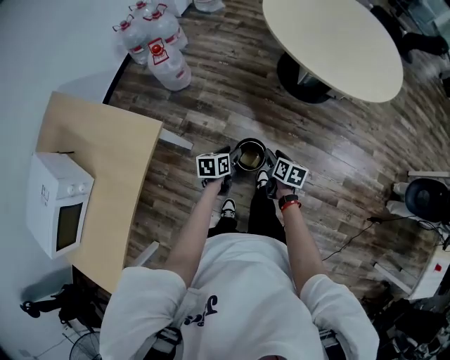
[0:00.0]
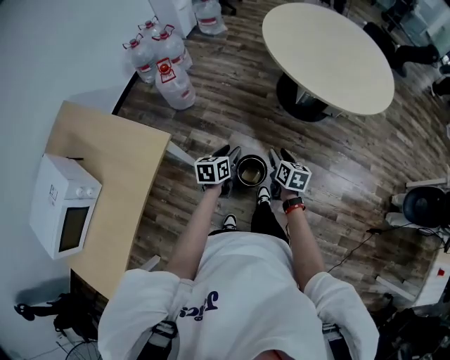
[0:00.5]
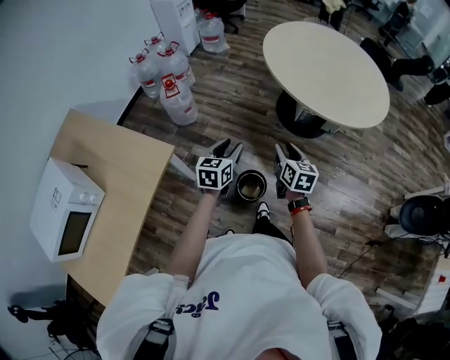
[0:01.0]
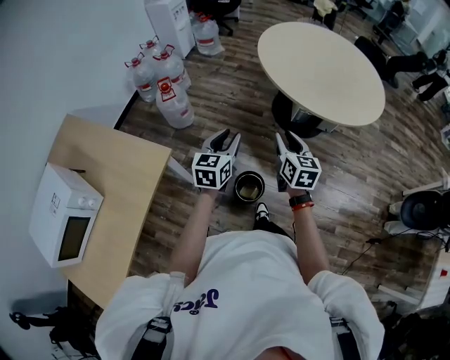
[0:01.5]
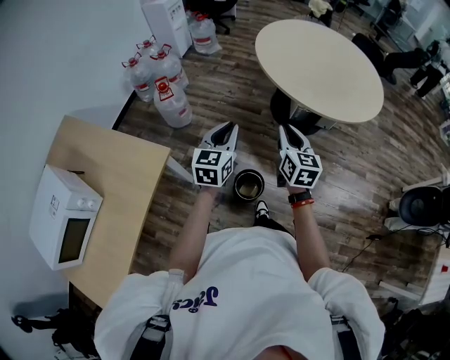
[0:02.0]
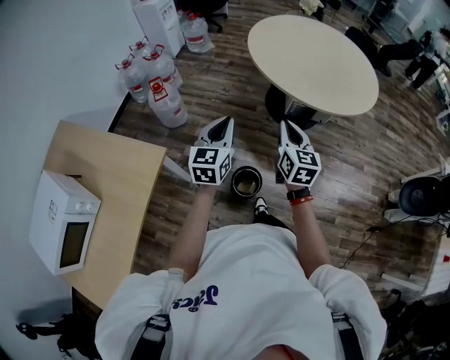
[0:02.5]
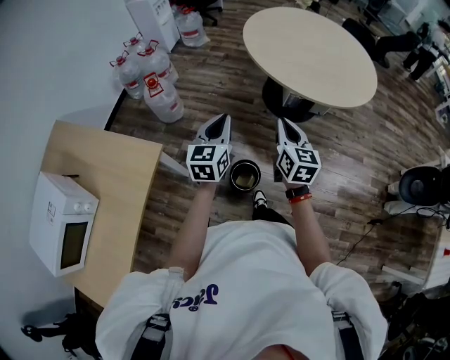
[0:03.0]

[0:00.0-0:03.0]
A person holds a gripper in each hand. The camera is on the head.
0:00.0 to 0:01.5: Both grippers travel together upward, roughly 30 cm. The left gripper swivels some 40 degrees, while the right gripper swivels approximately 40 degrees.
0:01.5 to 0:03.0: The right gripper closes up. The left gripper closes up.

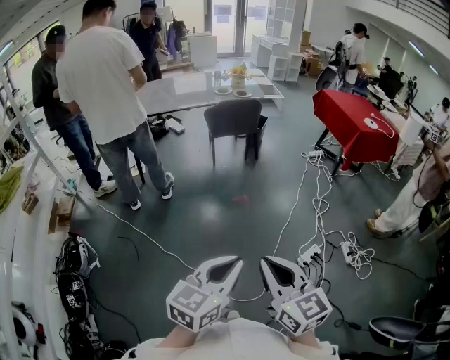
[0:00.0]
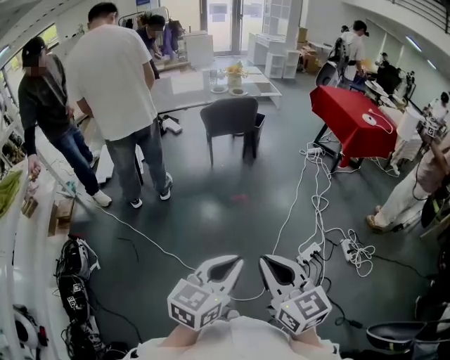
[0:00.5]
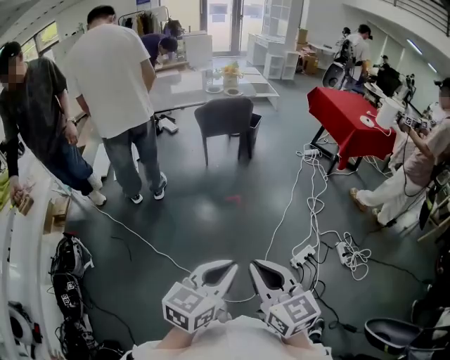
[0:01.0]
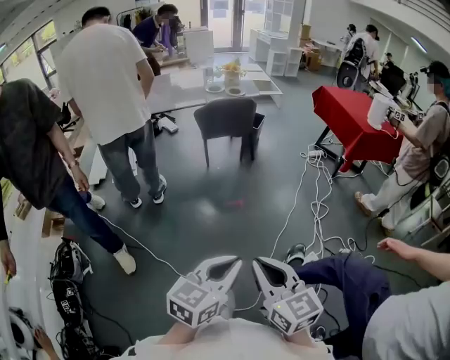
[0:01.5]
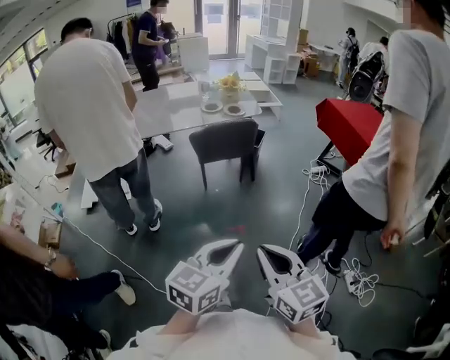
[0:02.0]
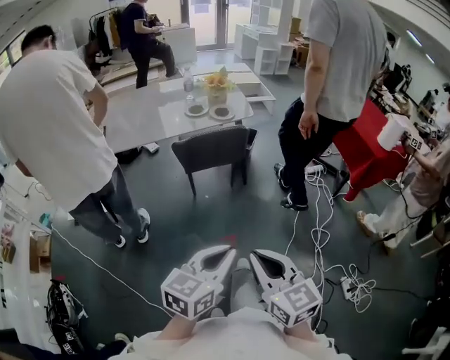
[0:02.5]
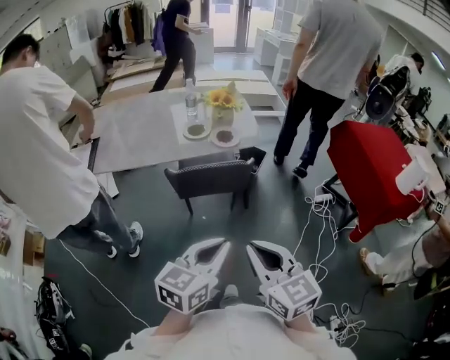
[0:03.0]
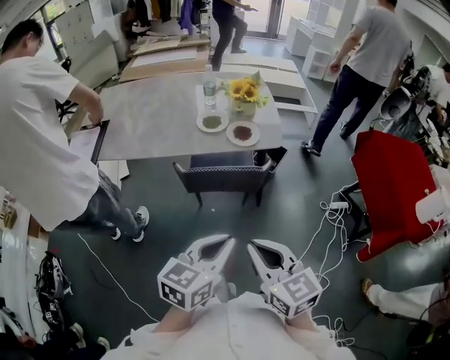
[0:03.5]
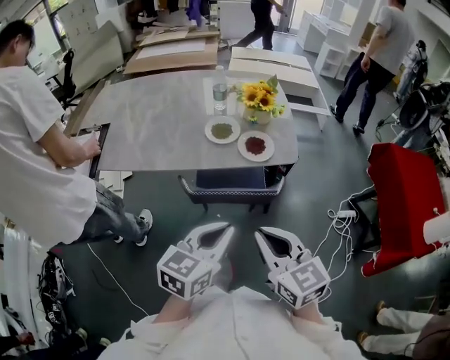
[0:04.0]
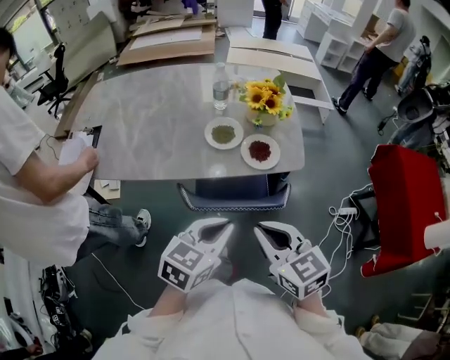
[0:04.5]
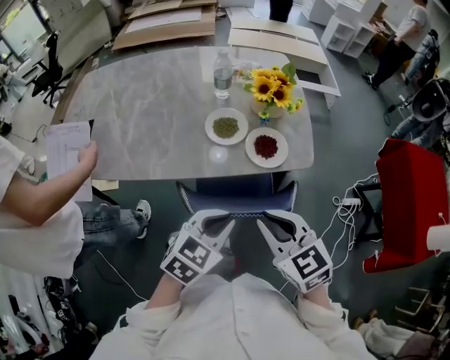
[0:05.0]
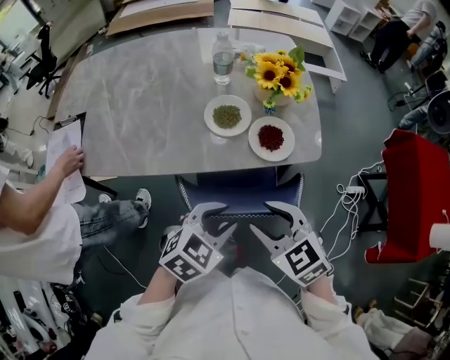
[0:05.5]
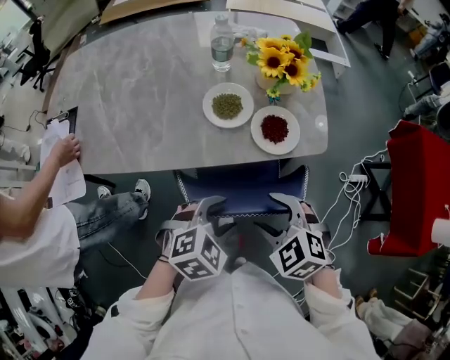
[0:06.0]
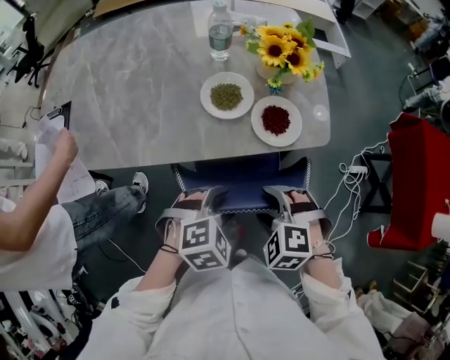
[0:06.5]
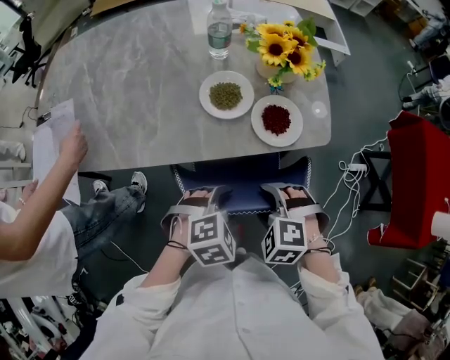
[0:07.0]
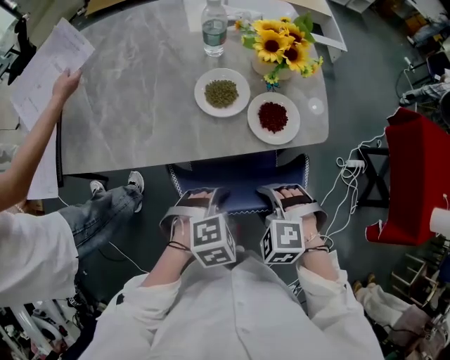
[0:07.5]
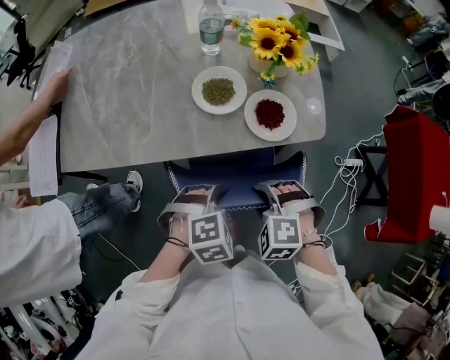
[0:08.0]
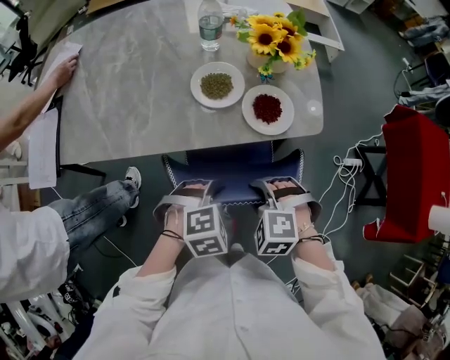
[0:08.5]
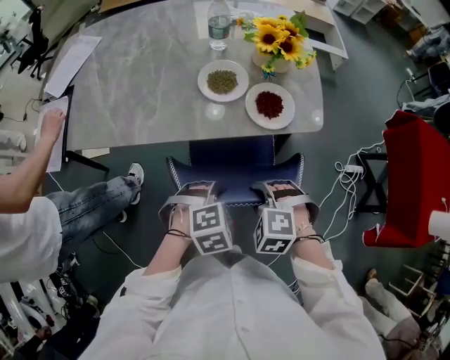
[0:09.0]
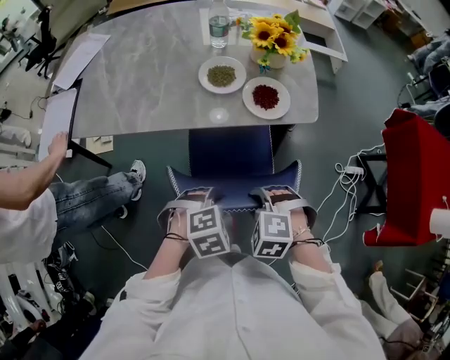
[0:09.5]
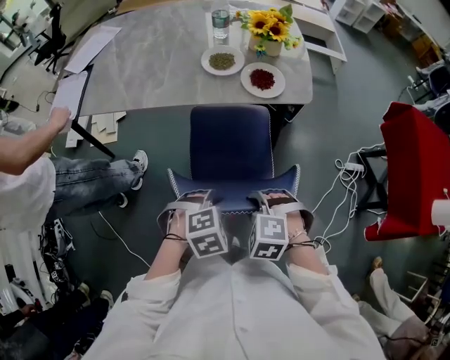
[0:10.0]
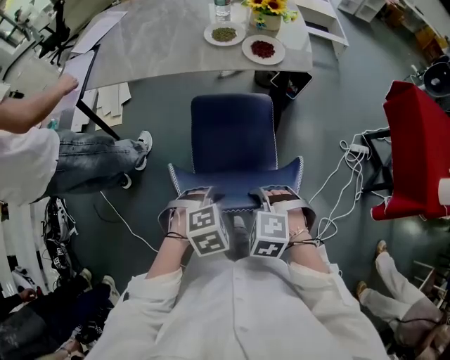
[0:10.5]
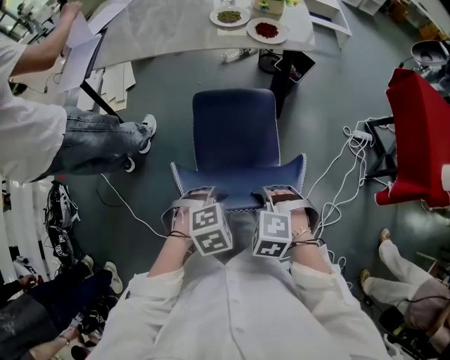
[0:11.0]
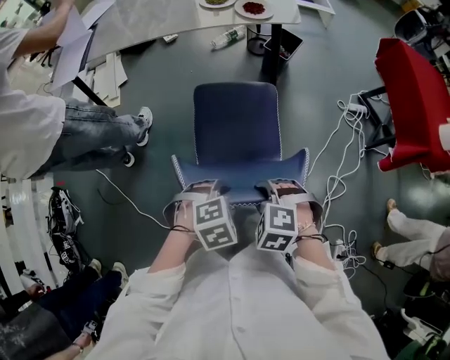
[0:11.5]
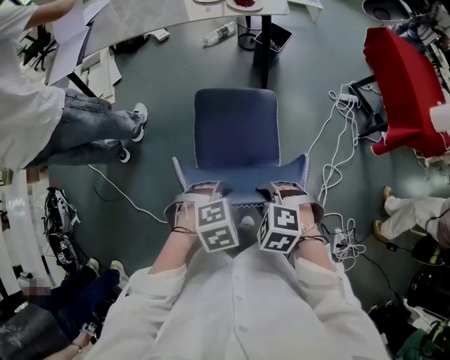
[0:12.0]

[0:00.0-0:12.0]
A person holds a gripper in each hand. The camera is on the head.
0:00.0 to 0:02.0: Both grippers travel together forward, approximately 35 cm.
0:02.0 to 0:04.0: The two grippers travel together, forward, roughly 60 cm.
0:04.0 to 0:06.0: Both grippers move downward and forward, about 20 cm. The left gripper tips its fingers downward by approximately 40 degrees, and opens, while the right gripper points its fingers some 30 degrees further downward, and opens.
0:06.0 to 0:08.0: Both grippers move downward, some 5 cm. The left gripper closes up. Meanwhile the right gripper swivels approximately 30 degrees, and closes.
0:08.0 to 0:10.0: The grippers both shift backward by some 20 cm.
0:10.0 to 0:12.0: The grippers both shift backward by about 35 cm.

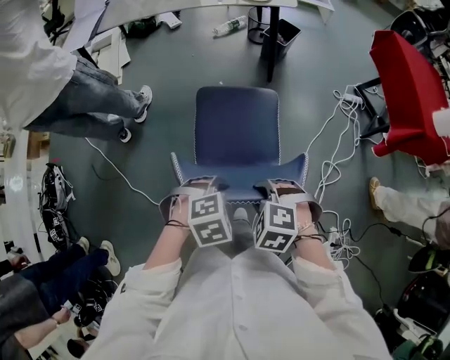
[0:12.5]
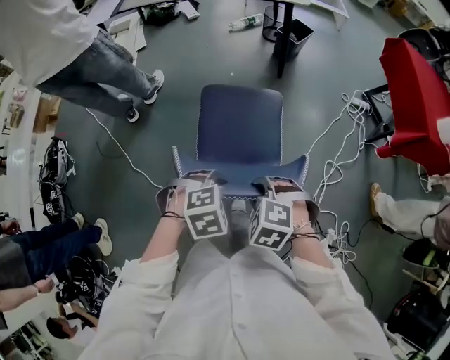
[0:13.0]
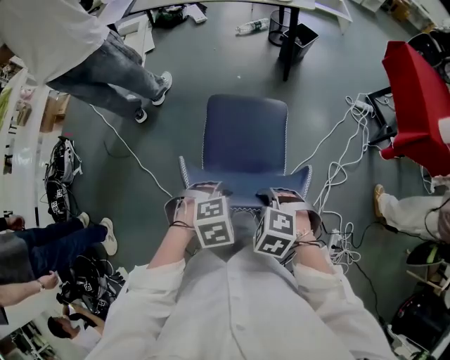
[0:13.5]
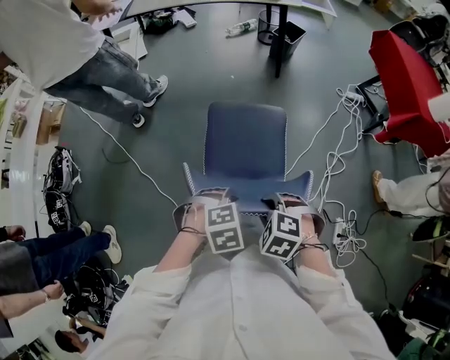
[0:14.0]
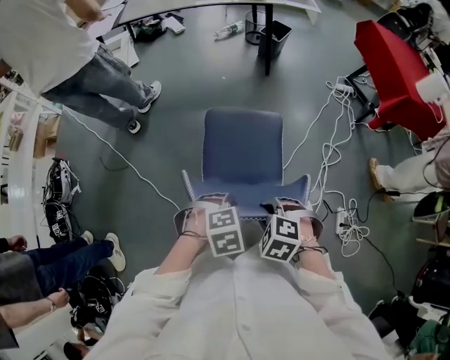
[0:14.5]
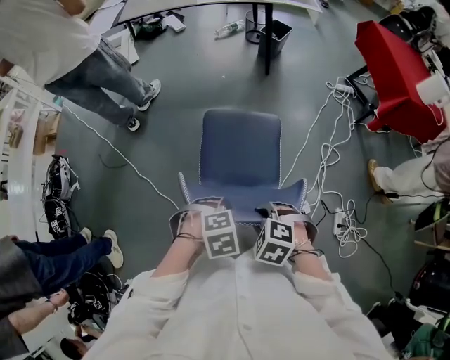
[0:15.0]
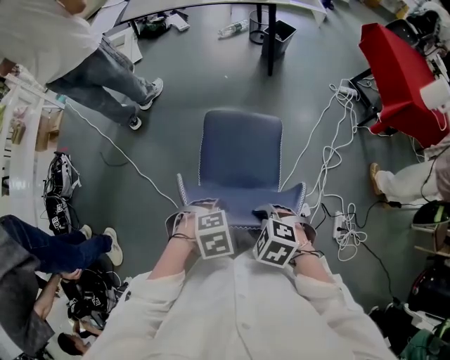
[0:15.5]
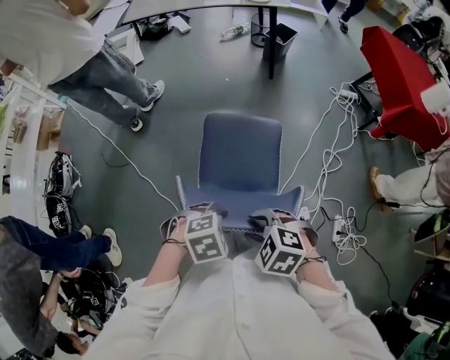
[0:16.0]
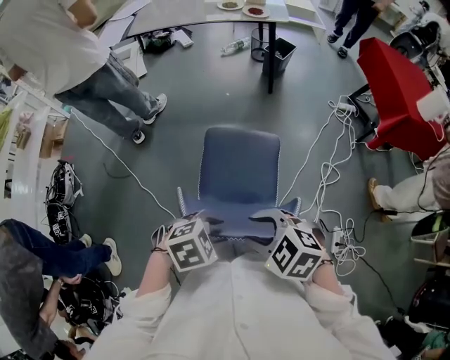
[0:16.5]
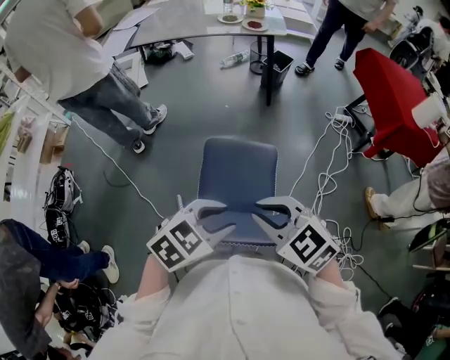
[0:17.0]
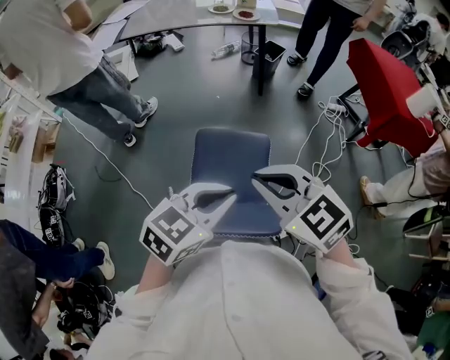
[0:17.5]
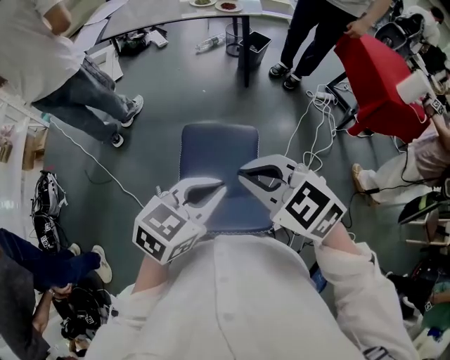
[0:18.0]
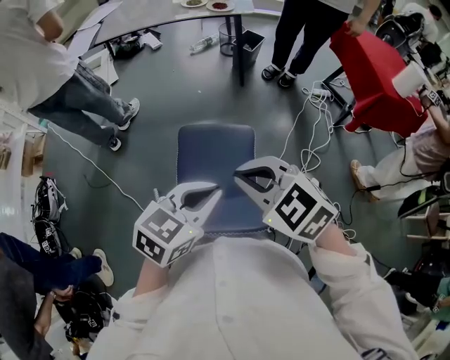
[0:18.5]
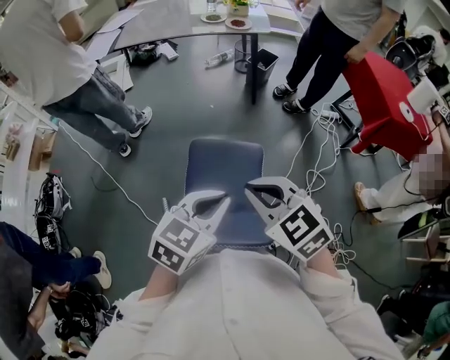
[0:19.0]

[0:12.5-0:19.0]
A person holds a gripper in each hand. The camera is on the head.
0:12.5 to 0:14.5: The right gripper changes place by roughly 25 cm. Meanwhile the left gripper moves some 25 cm.
0:14.5 to 0:17.0: Both grippers travel together upward, about 15 cm. The left gripper tips its fingers upward by some 30 degrees. The right gripper tips its fingers upward by some 40 degrees.
0:17.0 to 0:19.0: Both grippers travel together forward, roughly 5 cm. The left gripper swivels some 20 degrees, and closes its fingers.

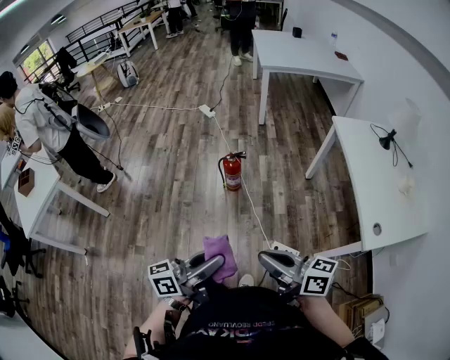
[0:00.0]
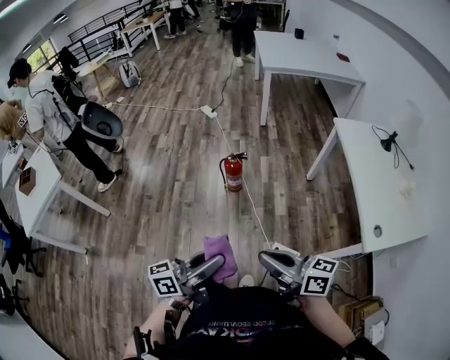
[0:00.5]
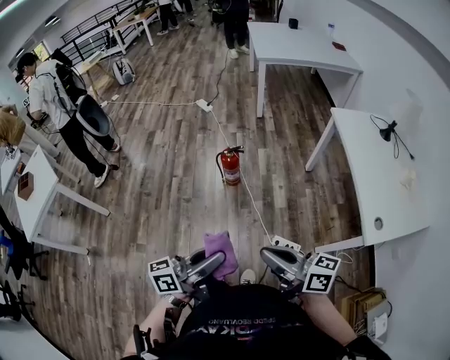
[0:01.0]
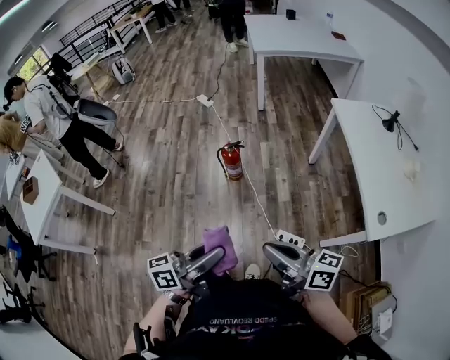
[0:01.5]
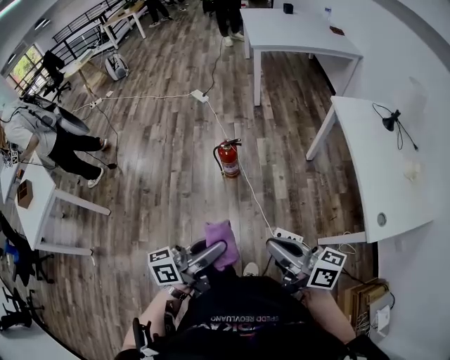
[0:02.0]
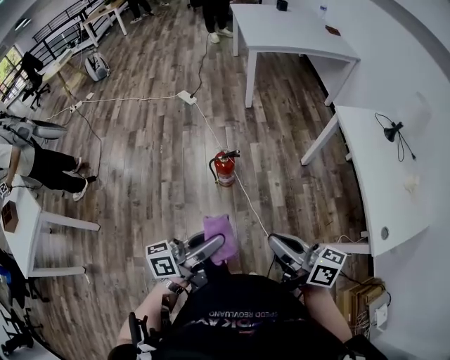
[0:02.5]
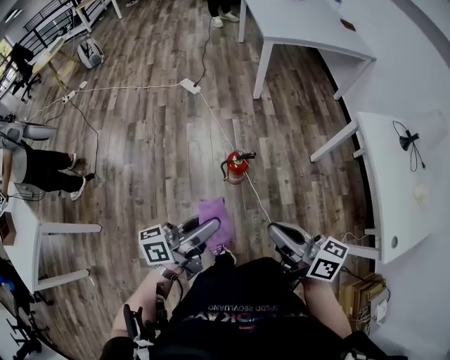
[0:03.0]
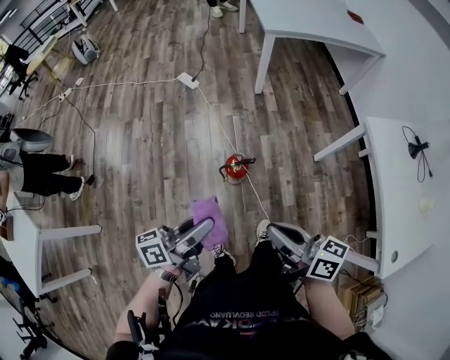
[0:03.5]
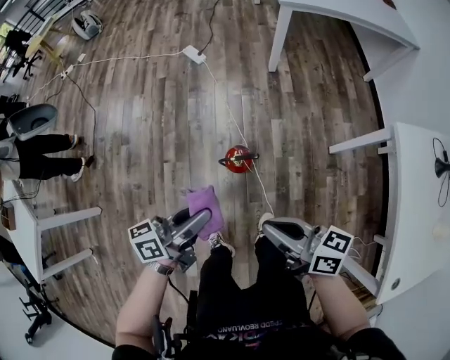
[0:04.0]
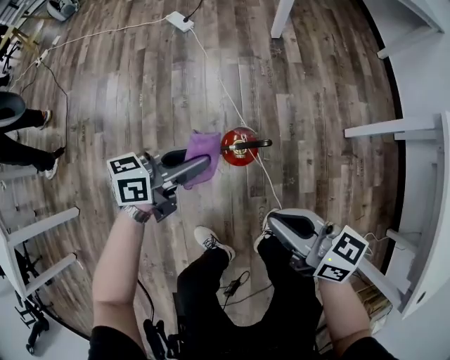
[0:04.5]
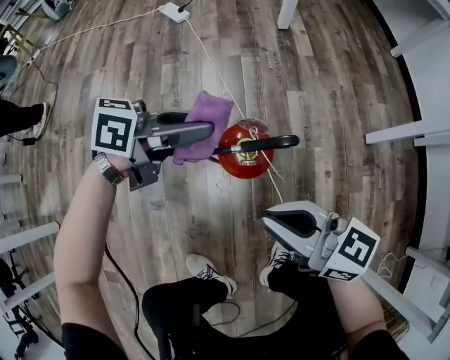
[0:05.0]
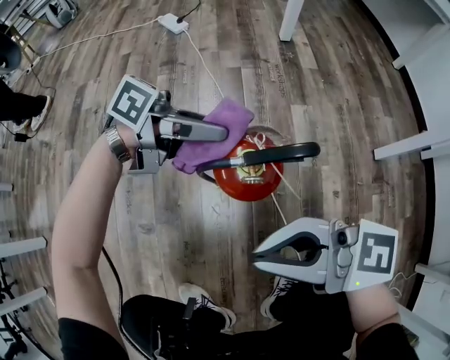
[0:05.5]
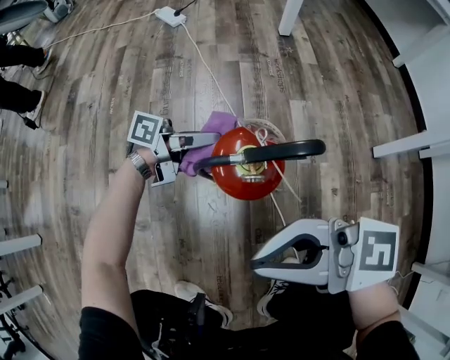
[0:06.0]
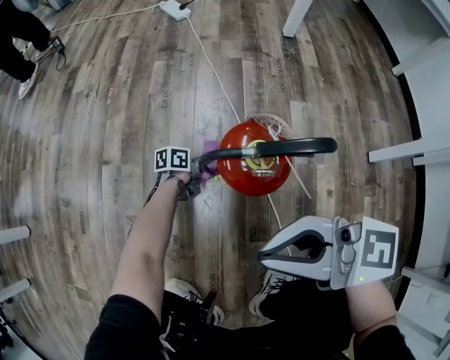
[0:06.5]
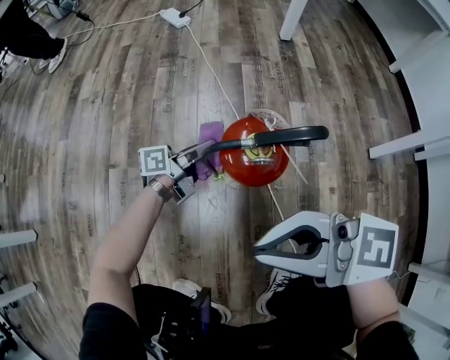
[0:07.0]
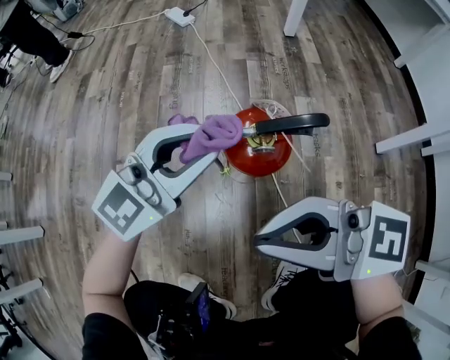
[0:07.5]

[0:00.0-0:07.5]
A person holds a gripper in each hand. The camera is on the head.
0:00.0 to 0:02.0: The two grippers go approximately 5 cm forward.
0:02.0 to 0:04.0: Both grippers are carried forward, about 40 cm.
0:04.0 to 0:05.5: Both grippers move downward, about 40 cm. The right gripper rotates approximately 40 degrees; the left gripper swivels approximately 50 degrees.
0:05.5 to 0:07.5: The left gripper reaches some 35 cm downward, then returns, and rolls clockwise, seen from behind, by roughly 70 degrees.
